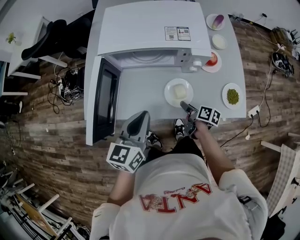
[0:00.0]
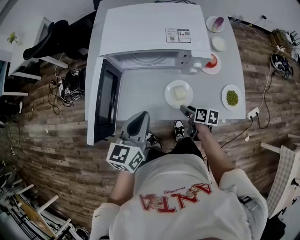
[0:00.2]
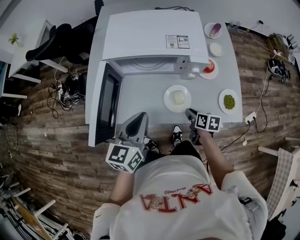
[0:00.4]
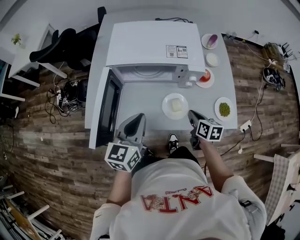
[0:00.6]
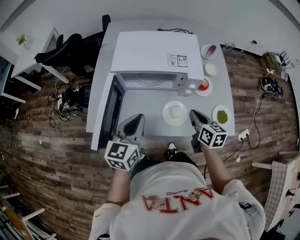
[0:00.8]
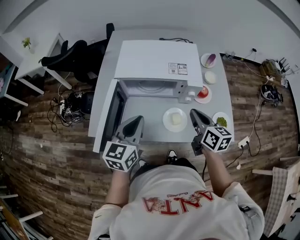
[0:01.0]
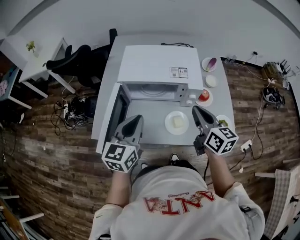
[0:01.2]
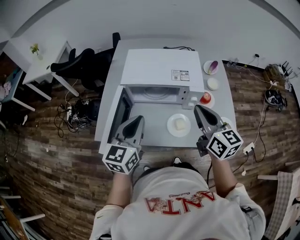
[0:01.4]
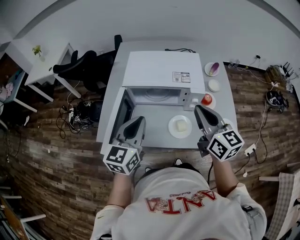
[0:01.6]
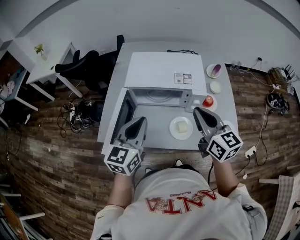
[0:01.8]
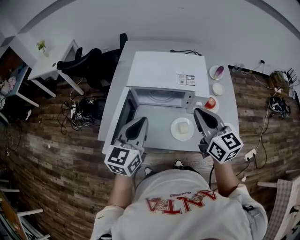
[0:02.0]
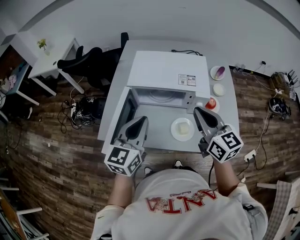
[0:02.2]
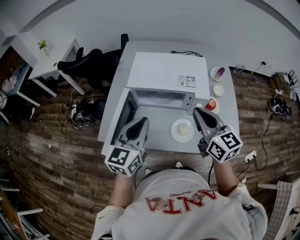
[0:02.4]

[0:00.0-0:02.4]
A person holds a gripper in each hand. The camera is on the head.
0:00.0 to 0:01.2: The left gripper is displaced upward by about 10 cm. The right gripper travels upward by about 30 cm, rolls counterclockwise, seen from behind, by roughly 50 degrees, and closes its fingers.
0:01.2 to 0:02.4: The right gripper shifts about 5 cm upward.

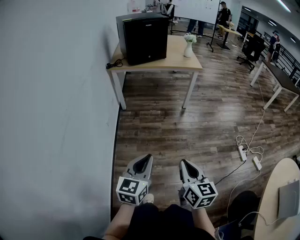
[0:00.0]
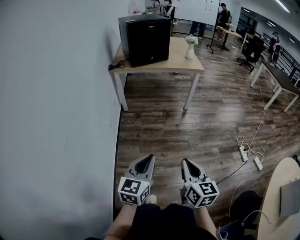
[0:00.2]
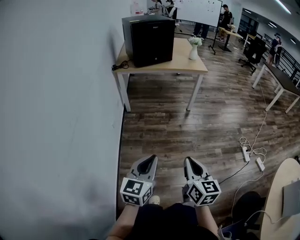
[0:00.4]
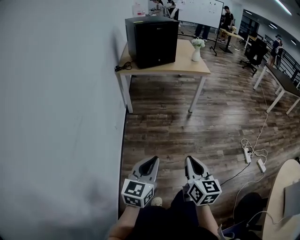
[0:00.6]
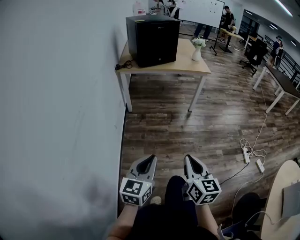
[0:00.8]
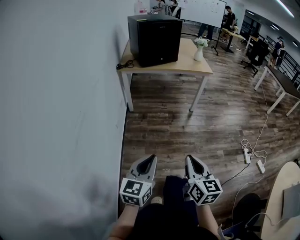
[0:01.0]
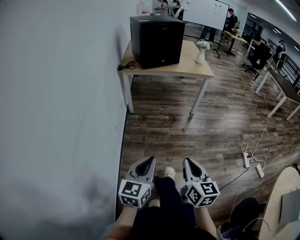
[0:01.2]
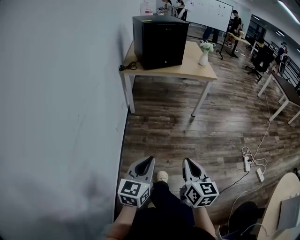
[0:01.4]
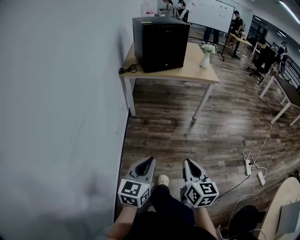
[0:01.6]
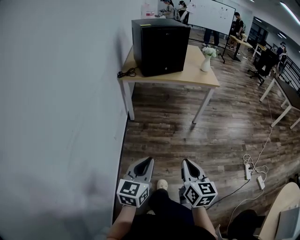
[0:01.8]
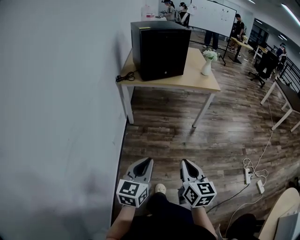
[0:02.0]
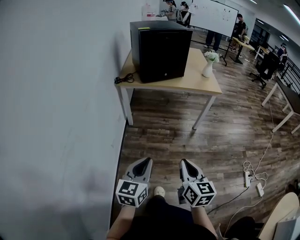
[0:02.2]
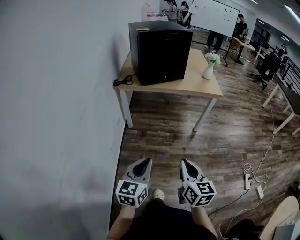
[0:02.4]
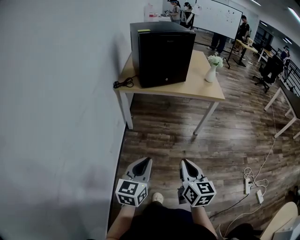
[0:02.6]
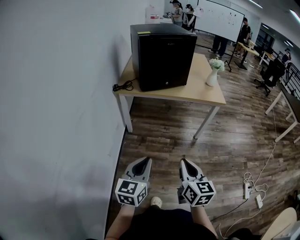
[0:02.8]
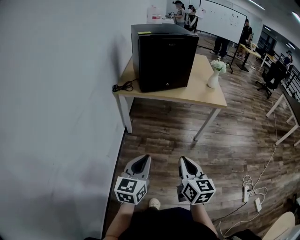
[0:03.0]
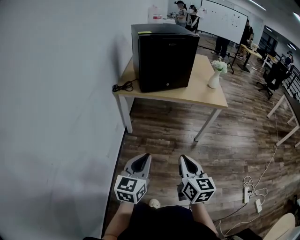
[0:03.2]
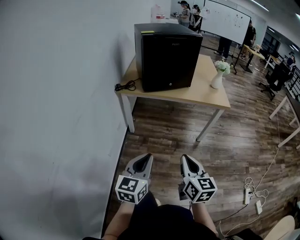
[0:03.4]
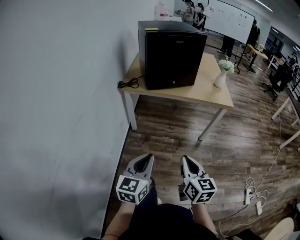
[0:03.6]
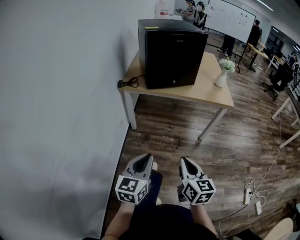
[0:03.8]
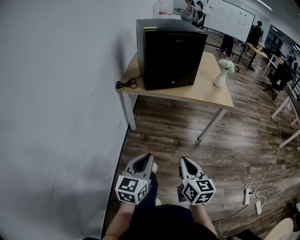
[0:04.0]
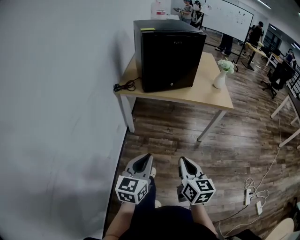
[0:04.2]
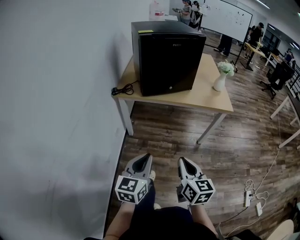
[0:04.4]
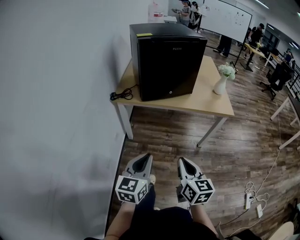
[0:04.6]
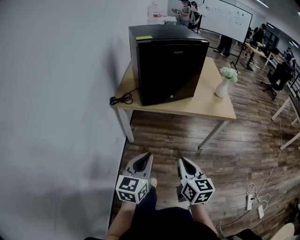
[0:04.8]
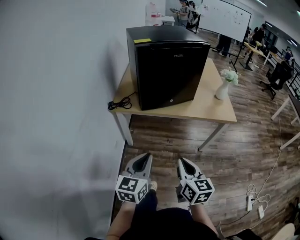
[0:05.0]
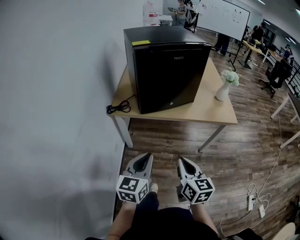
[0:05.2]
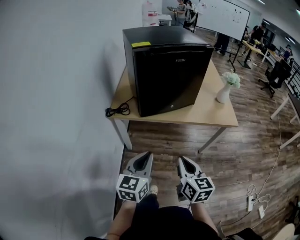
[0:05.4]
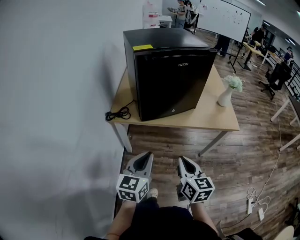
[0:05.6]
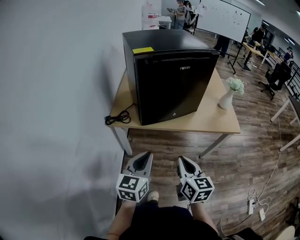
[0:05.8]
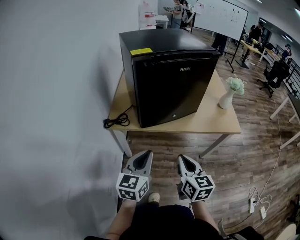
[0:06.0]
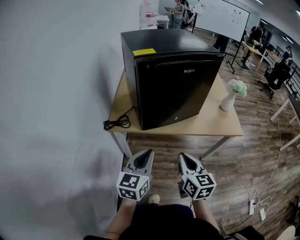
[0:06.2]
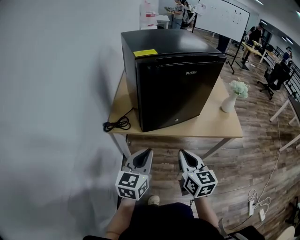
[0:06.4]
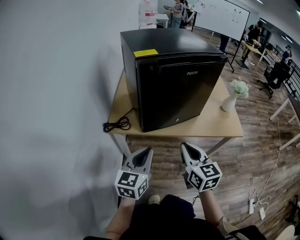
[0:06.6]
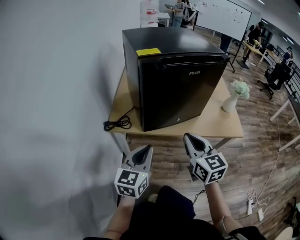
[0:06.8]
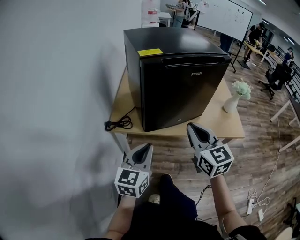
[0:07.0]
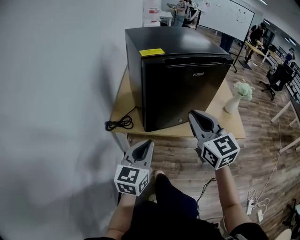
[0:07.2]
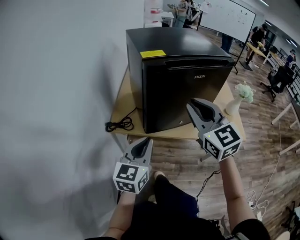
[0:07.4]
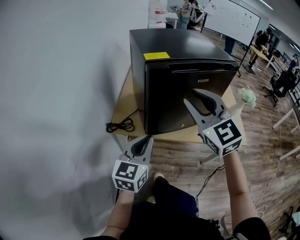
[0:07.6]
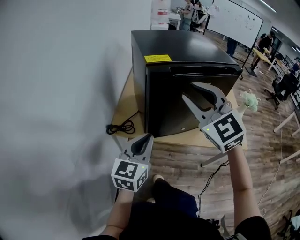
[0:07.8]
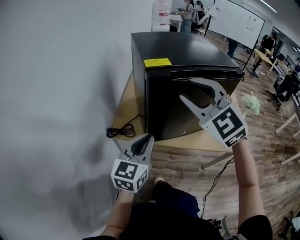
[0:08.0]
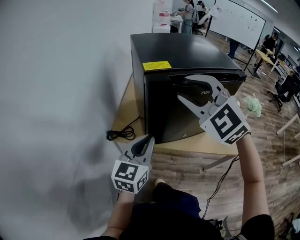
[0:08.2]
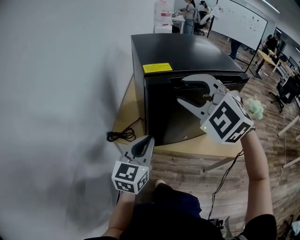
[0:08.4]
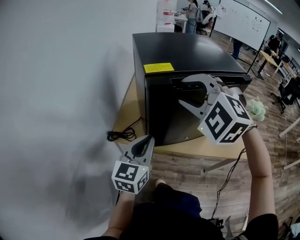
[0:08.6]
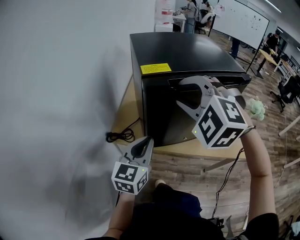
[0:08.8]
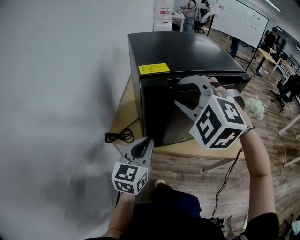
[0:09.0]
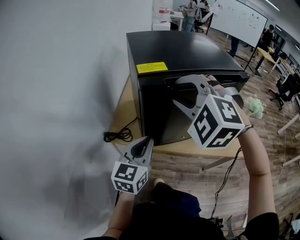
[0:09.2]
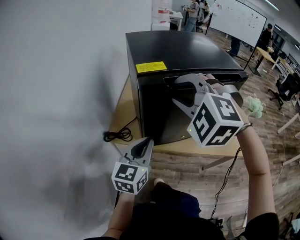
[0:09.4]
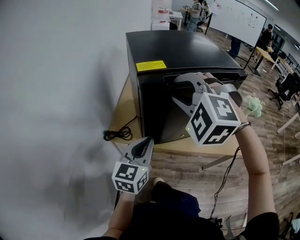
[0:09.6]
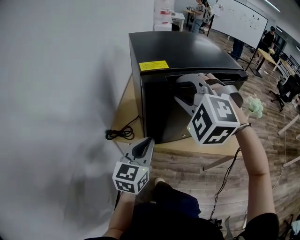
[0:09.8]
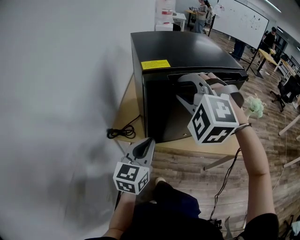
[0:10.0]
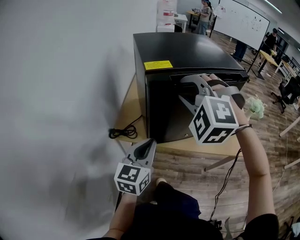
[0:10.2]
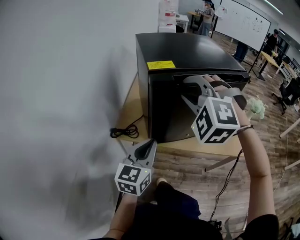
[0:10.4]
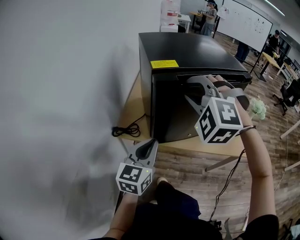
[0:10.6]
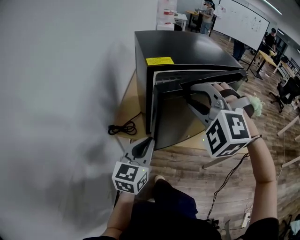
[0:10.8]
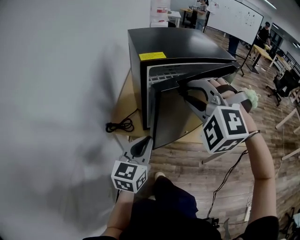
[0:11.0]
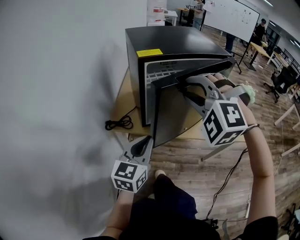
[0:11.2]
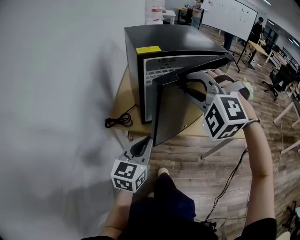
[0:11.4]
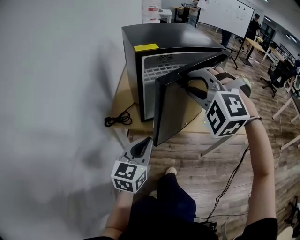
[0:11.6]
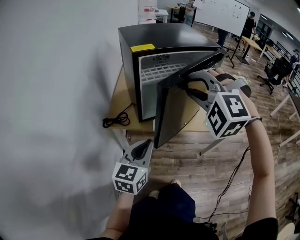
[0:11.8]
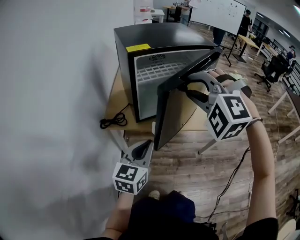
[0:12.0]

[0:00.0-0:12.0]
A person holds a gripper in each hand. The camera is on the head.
0:00.0 to 0:01.6: The left gripper shifts roughly 15 cm to the left and forward. The right gripper heads forward and to the left, covering roughly 15 cm.
0:01.6 to 0:03.0: The two grippers go some 30 cm forward.
0:03.0 to 0:04.4: The grippers both shift forward by about 10 cm.
0:04.4 to 0:06.0: The two grippers go some 30 cm forward.
0:06.0 to 0:07.6: The left gripper goes roughly 10 cm forward and upward, while the right gripper moves upward and forward, some 30 cm, rolls counterclockwise, seen from behind, by roughly 50 degrees, and opens its fingers.
0:07.6 to 0:09.0: Both grippers move forward, about 5 cm. The right gripper rotates roughly 50 degrees.
0:09.0 to 0:10.4: There are only small adjustments of the grippers.
0:10.4 to 0:12.0: The right gripper goes roughly 15 cm backward and to the right; the left gripper shifts approximately 10 cm backward.

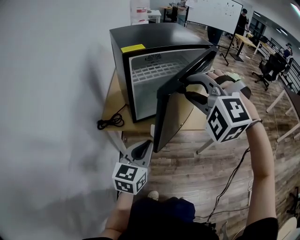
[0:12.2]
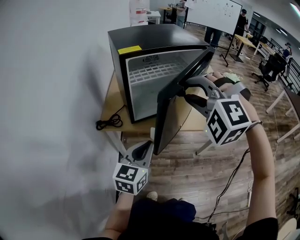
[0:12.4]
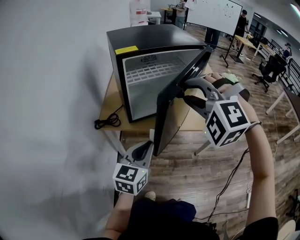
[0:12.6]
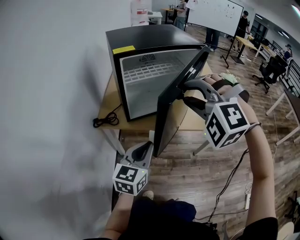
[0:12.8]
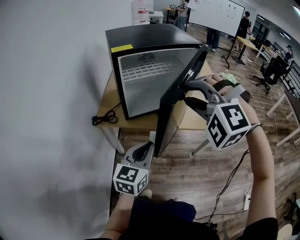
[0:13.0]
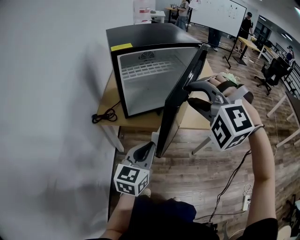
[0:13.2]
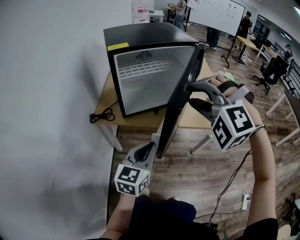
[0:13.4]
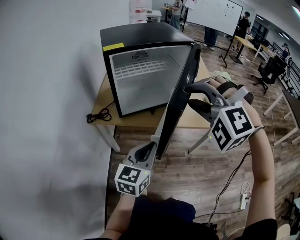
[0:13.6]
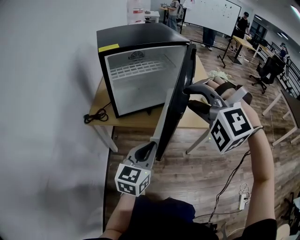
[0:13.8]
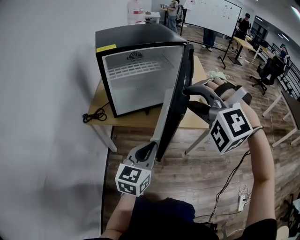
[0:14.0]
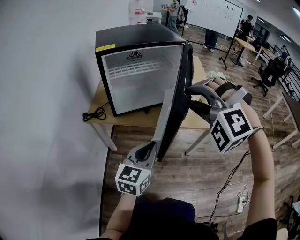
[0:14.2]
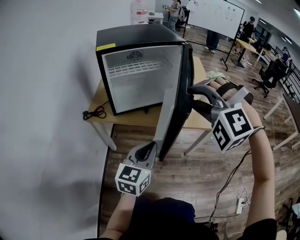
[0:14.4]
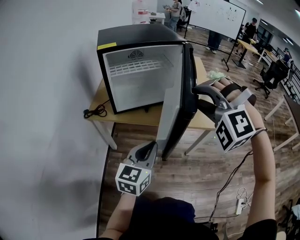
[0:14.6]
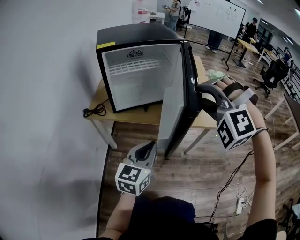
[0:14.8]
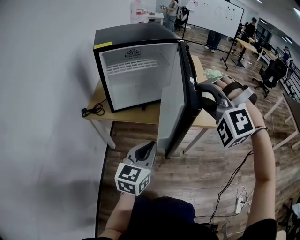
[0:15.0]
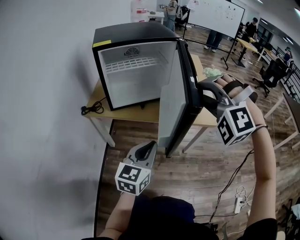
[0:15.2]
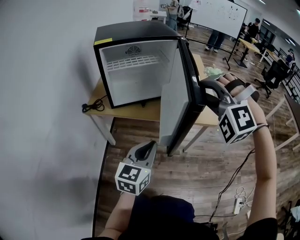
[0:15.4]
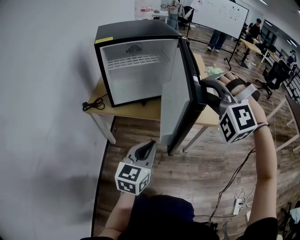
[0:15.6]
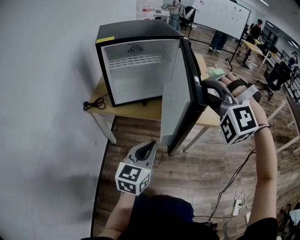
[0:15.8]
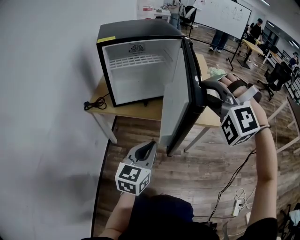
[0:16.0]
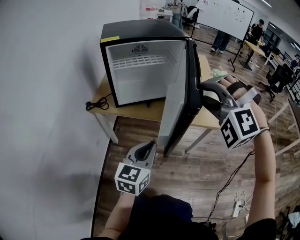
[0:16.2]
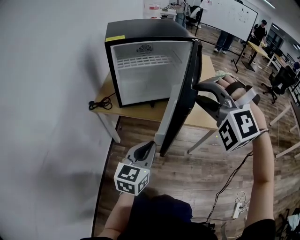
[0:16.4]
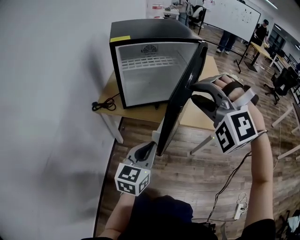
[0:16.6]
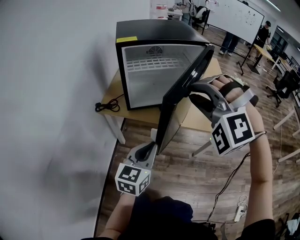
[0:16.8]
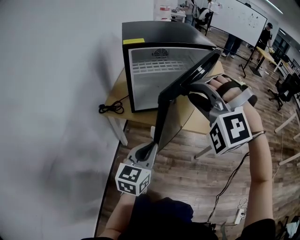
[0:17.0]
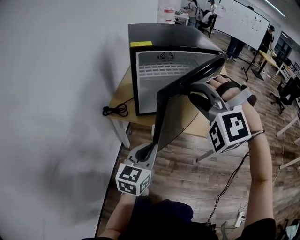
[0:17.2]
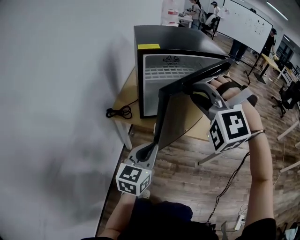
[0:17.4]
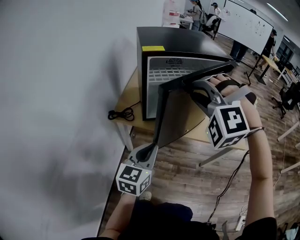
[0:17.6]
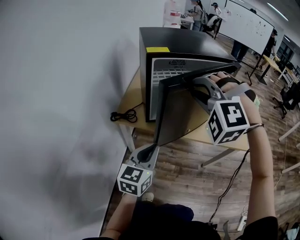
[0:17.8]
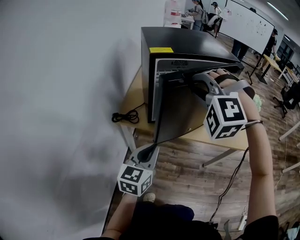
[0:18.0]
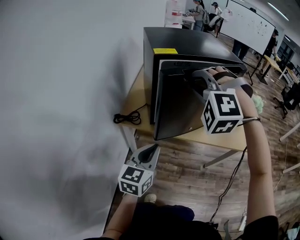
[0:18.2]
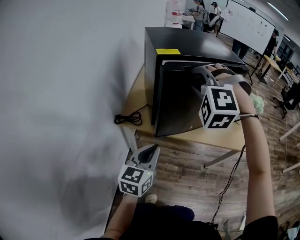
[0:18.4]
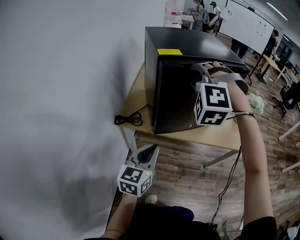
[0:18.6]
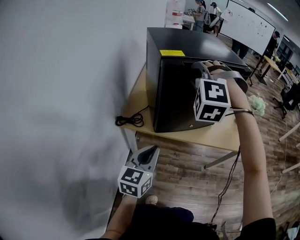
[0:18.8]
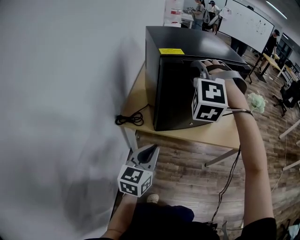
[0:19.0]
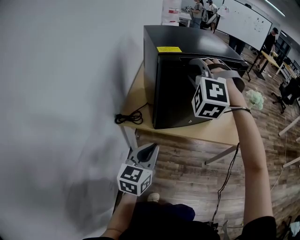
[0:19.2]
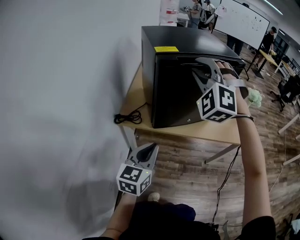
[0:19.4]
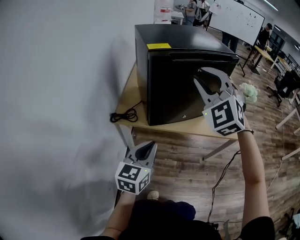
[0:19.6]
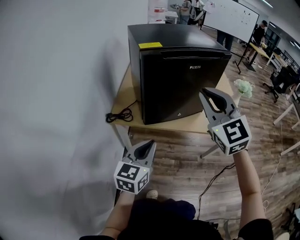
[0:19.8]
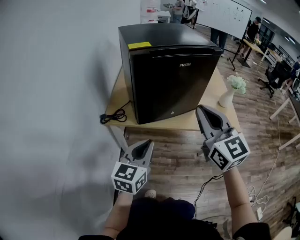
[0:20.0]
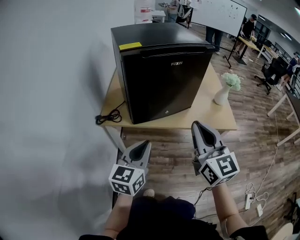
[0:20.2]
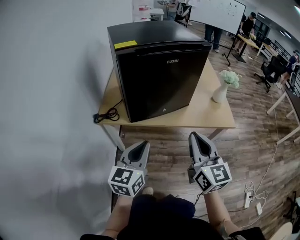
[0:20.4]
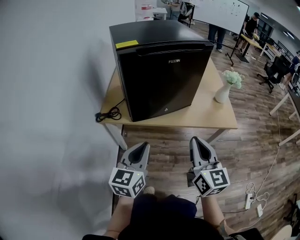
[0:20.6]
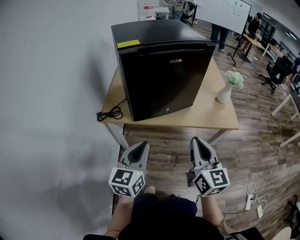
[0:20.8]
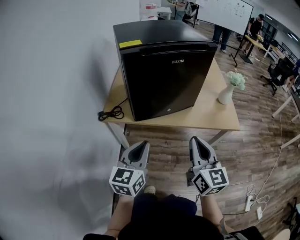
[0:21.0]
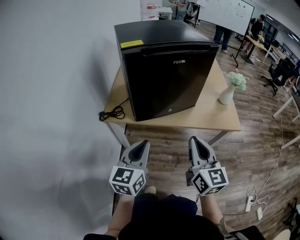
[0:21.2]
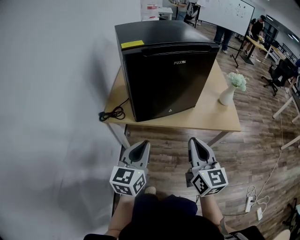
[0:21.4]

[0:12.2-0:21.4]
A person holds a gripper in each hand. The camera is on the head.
0:12.2 to 0:13.8: The left gripper moves to the right, some 15 cm. The right gripper goes about 15 cm to the right and backward.
0:13.8 to 0:15.2: The two grippers go roughly 10 cm to the right.
0:15.2 to 0:16.8: The two grippers go roughly 10 cm to the left.
0:16.8 to 0:18.4: The two grippers go some 20 cm to the left and forward.
0:18.4 to 0:19.8: The right gripper shifts approximately 10 cm to the right and backward, and rolls clockwise, seen from behind, by some 60 degrees.
0:19.8 to 0:21.4: The right gripper goes some 20 cm downward, backward and to the right, and turns by approximately 40 degrees.
